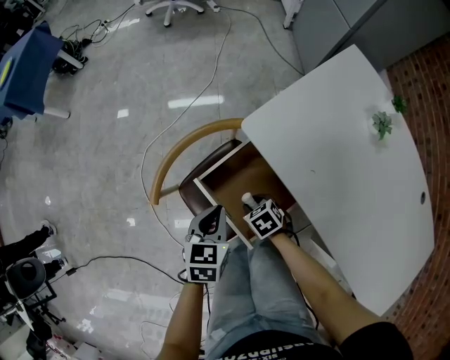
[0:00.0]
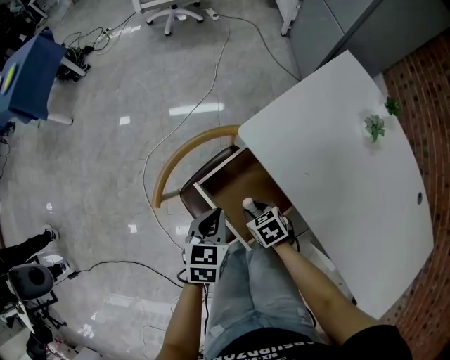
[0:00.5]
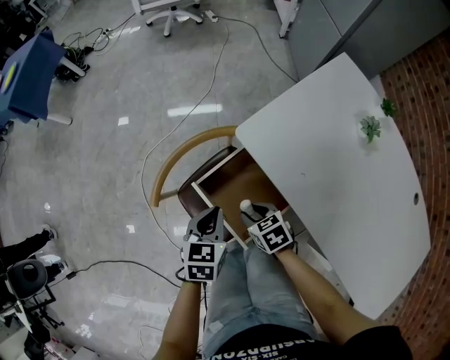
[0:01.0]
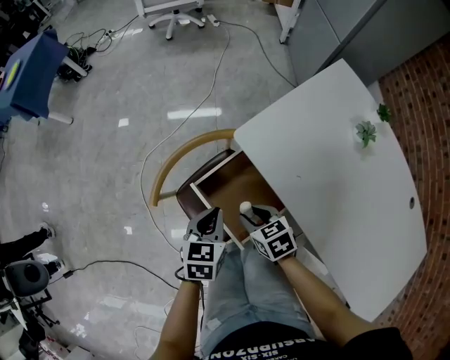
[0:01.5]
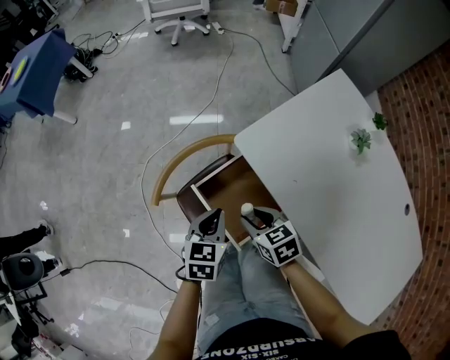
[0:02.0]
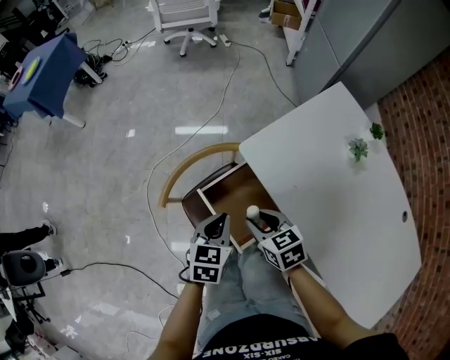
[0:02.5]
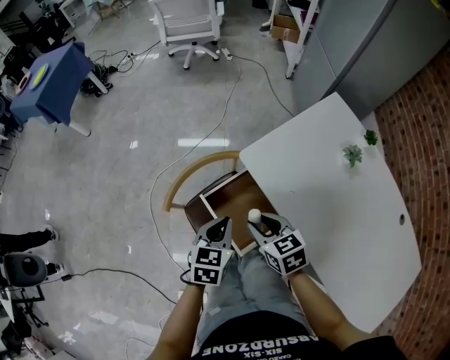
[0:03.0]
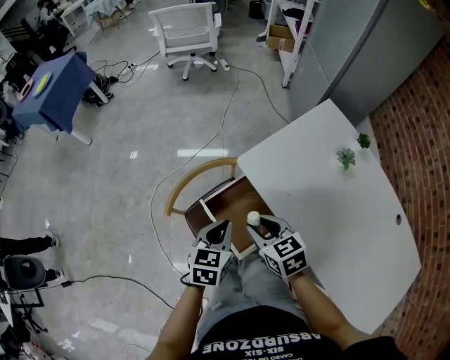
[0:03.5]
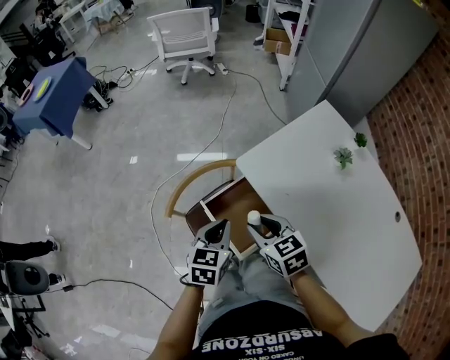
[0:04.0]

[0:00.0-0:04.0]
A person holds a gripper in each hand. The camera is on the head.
0:00.0 to 0:02.0: The left gripper is displaced upward by some 5 cm. The right gripper is displaced upward by some 20 cm, and swivels some 20 degrees.
0:02.0 to 0:04.0: Both grippers move upward, about 10 cm.

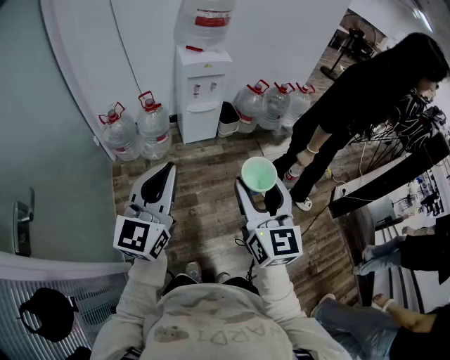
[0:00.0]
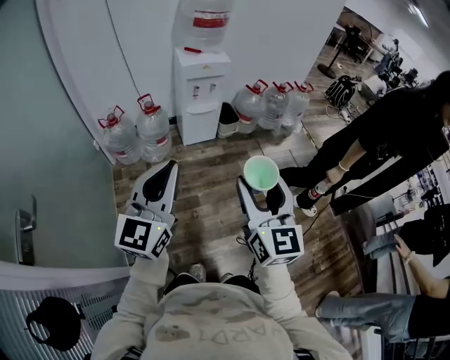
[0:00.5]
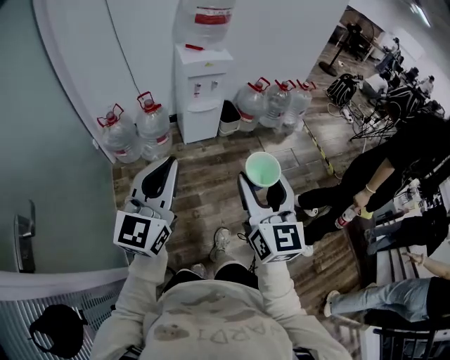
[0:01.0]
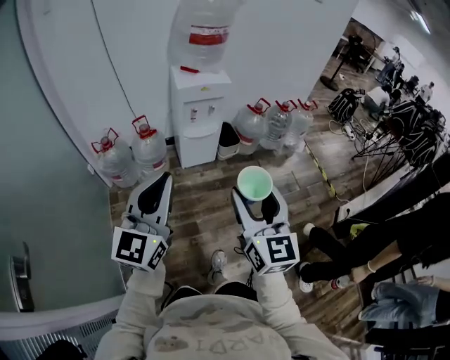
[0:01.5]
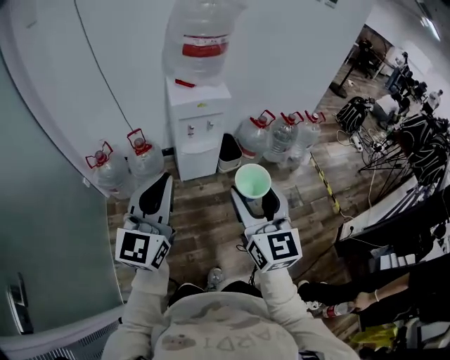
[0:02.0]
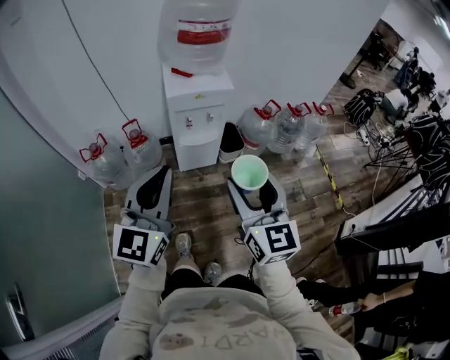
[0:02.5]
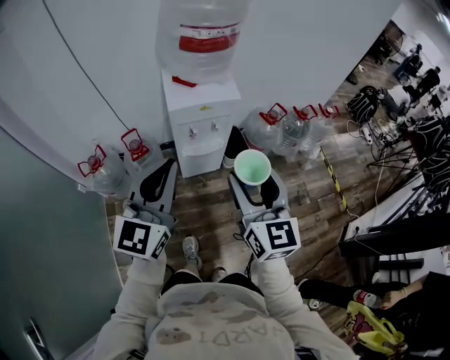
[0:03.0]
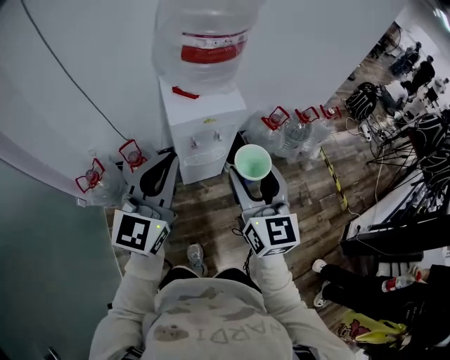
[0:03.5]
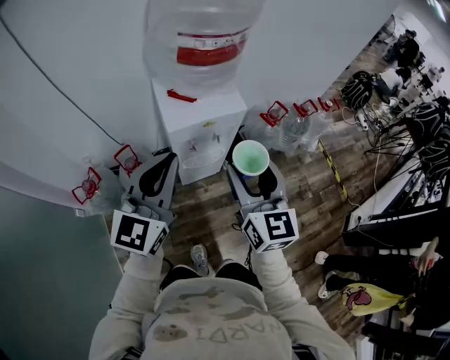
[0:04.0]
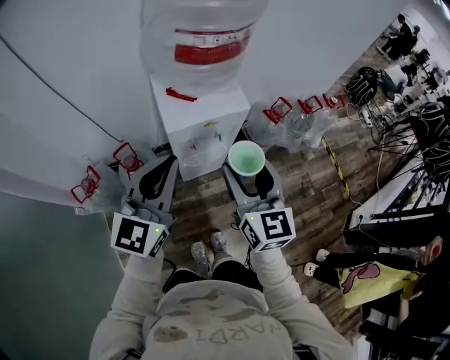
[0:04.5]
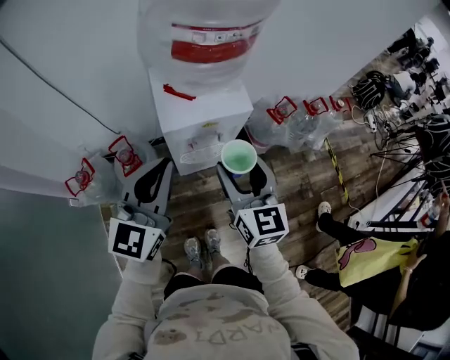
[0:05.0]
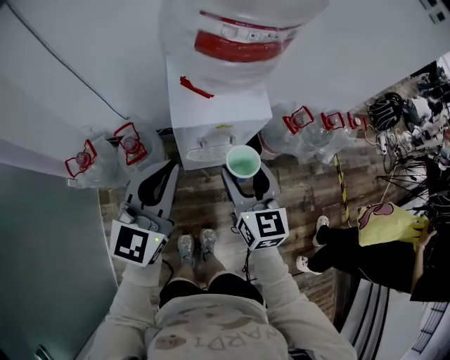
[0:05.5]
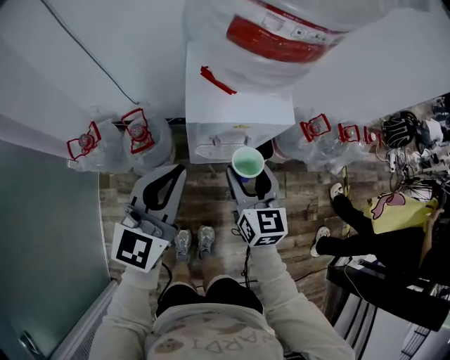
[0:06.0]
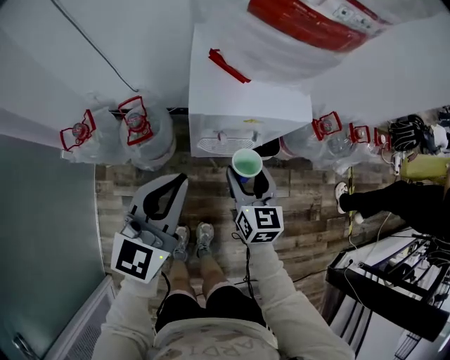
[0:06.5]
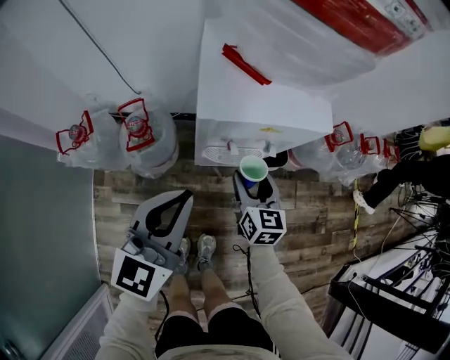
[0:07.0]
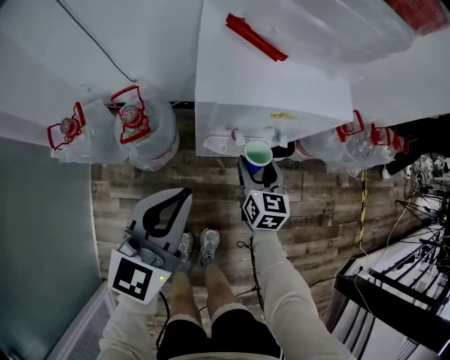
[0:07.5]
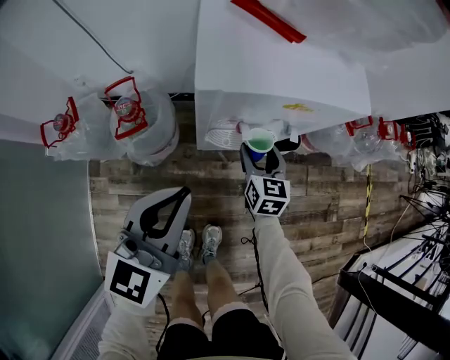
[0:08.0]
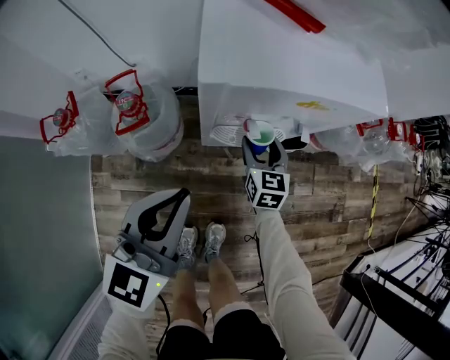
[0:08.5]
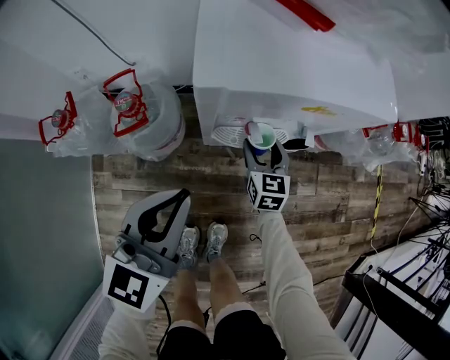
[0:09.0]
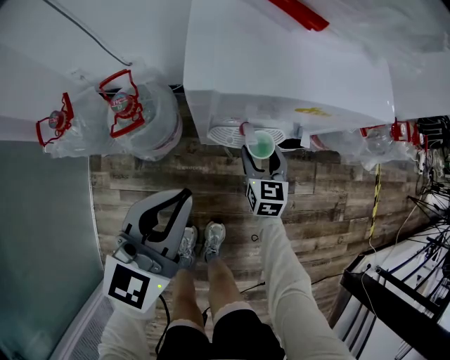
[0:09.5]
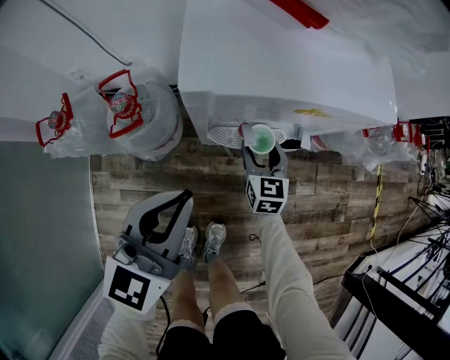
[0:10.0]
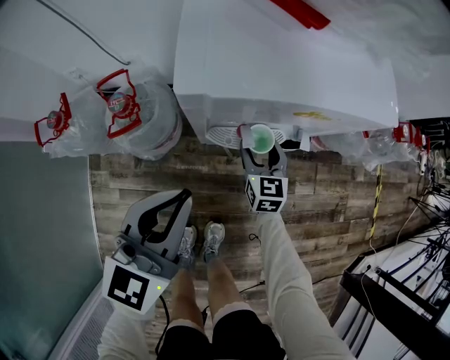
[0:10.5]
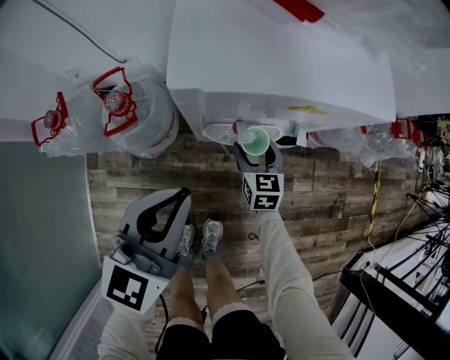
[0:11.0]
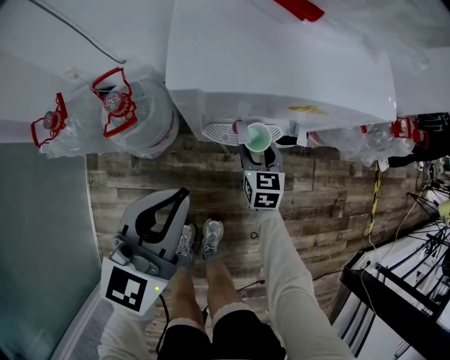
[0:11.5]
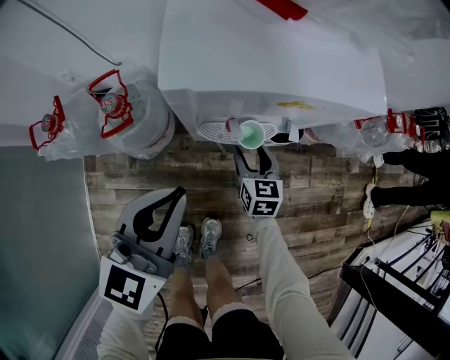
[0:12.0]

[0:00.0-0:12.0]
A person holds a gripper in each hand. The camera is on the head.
0:00.0 to 0:02.0: The grippers both shift forward by about 30 cm.
0:02.0 to 0:04.0: Both grippers move forward, about 35 cm.
0:04.0 to 0:06.0: The left gripper heads downward and forward, covering roughly 15 cm, while the right gripper moves downward and forward, about 25 cm, and turns by roughly 20 degrees.
0:06.0 to 0:08.0: The left gripper shifts approximately 20 cm downward. The right gripper is displaced downward by roughly 30 cm.
0:08.0 to 0:10.0: The right gripper goes about 5 cm downward.
0:10.0 to 0:12.0: The grippers move only a little.

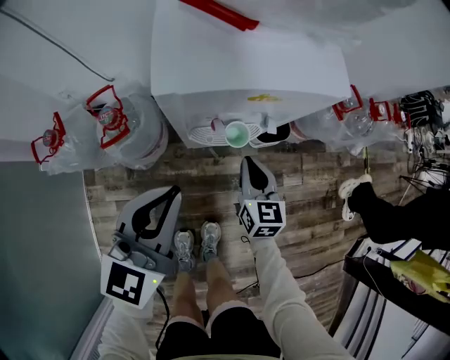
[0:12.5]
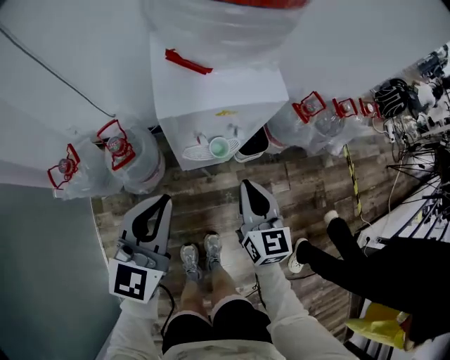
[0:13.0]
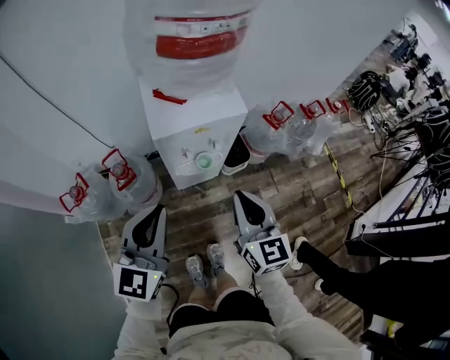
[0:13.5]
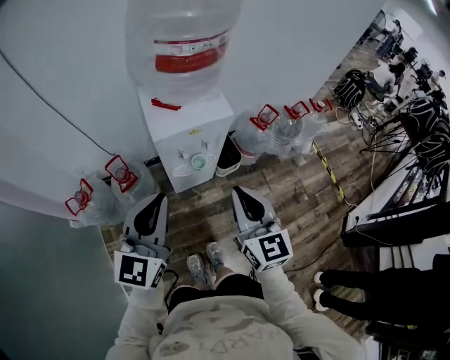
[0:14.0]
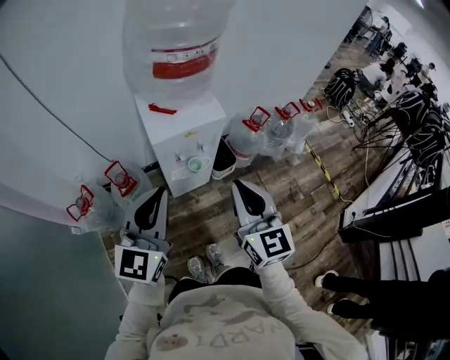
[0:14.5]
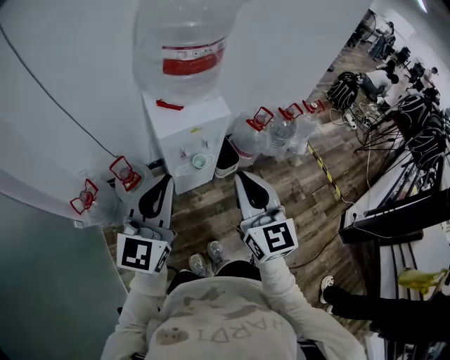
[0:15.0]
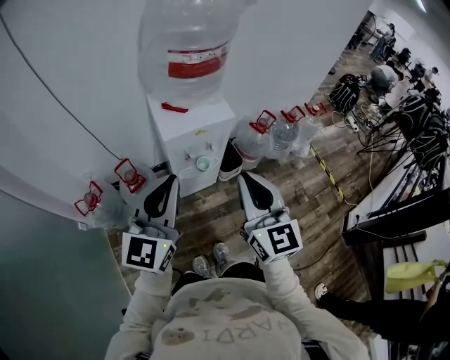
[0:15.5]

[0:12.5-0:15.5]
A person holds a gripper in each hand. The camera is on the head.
0:12.5 to 0:14.0: The right gripper shifts roughly 50 cm upward and backward, and swivels about 20 degrees; the left gripper shifts about 30 cm upward and backward.
0:14.0 to 0:15.5: The right gripper shifts some 10 cm upward, while the left gripper moves upward, about 5 cm.

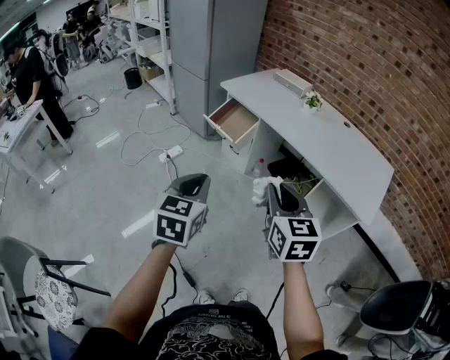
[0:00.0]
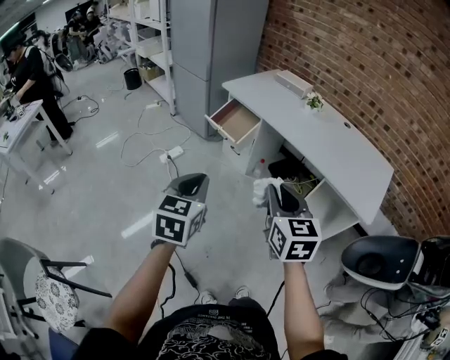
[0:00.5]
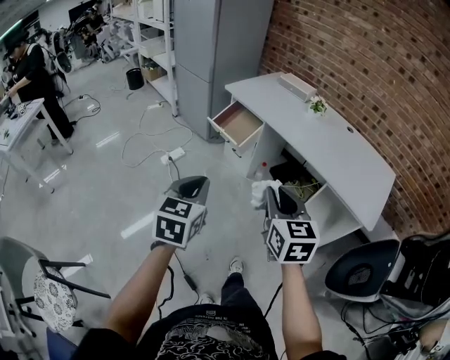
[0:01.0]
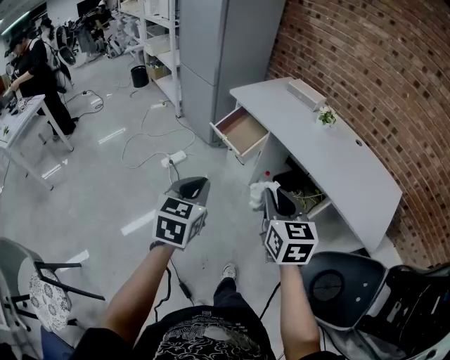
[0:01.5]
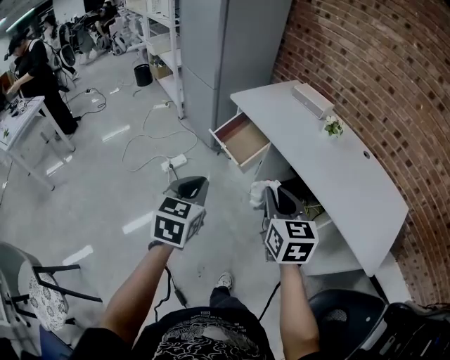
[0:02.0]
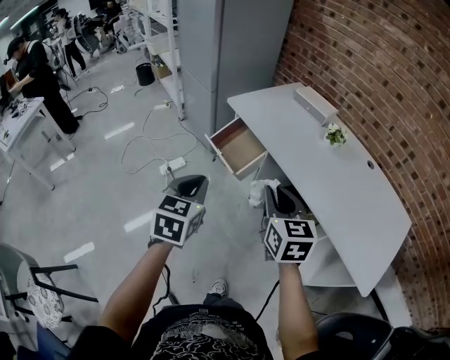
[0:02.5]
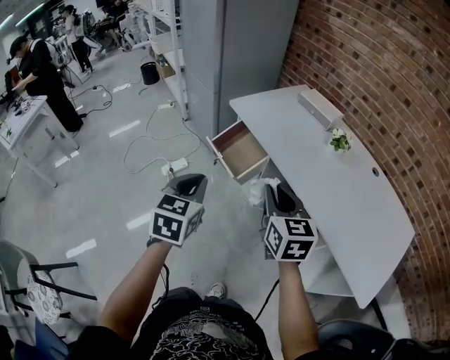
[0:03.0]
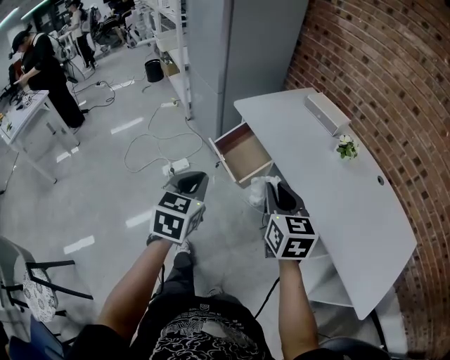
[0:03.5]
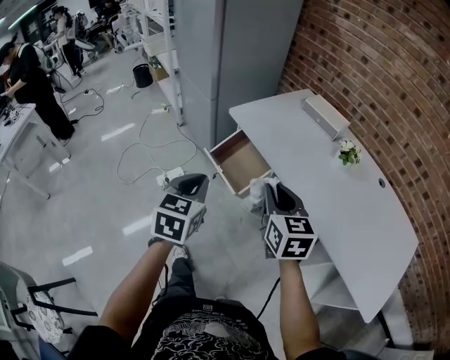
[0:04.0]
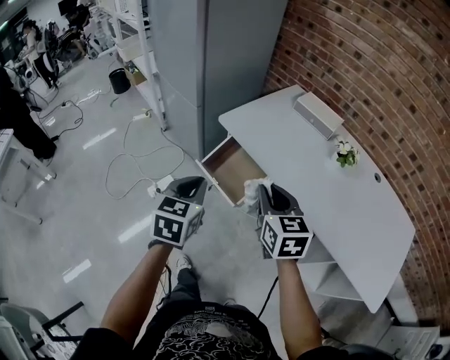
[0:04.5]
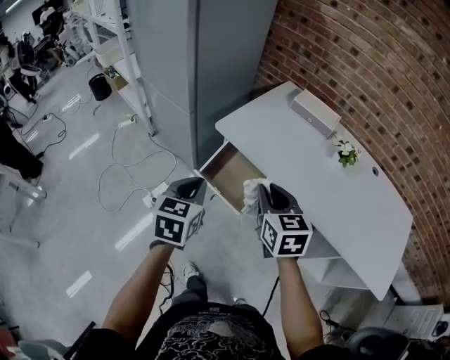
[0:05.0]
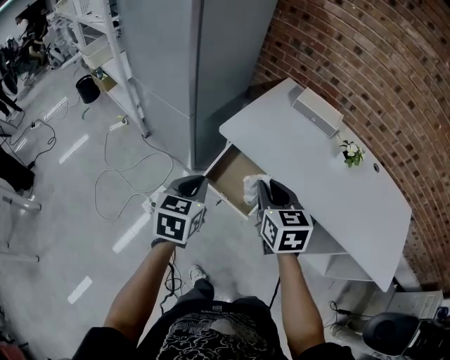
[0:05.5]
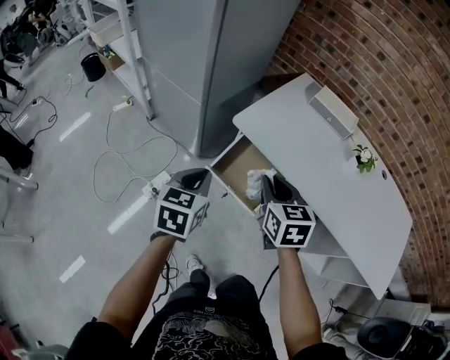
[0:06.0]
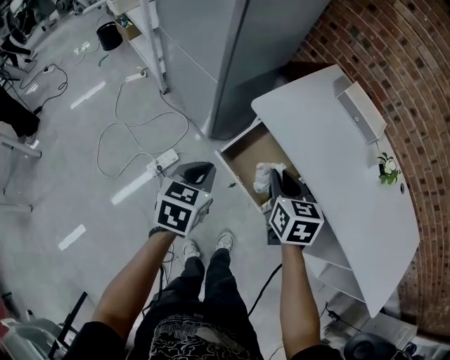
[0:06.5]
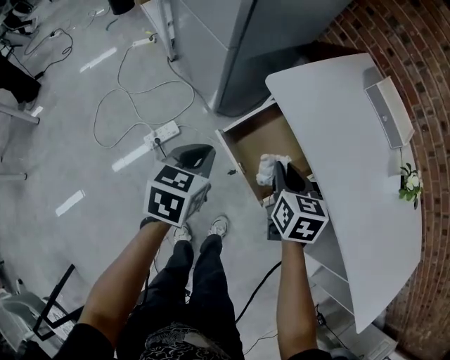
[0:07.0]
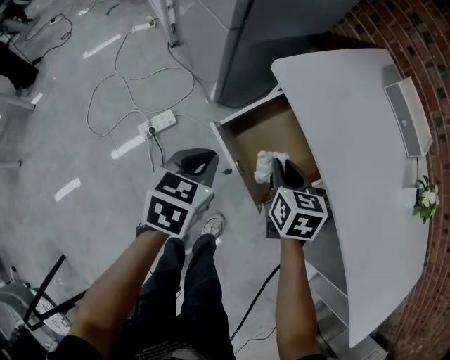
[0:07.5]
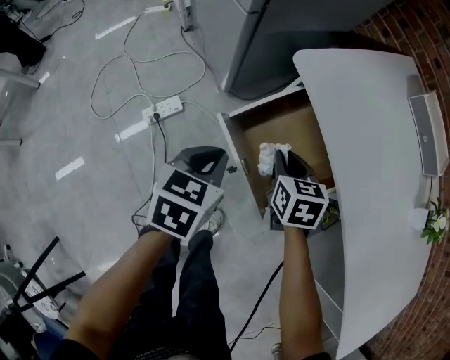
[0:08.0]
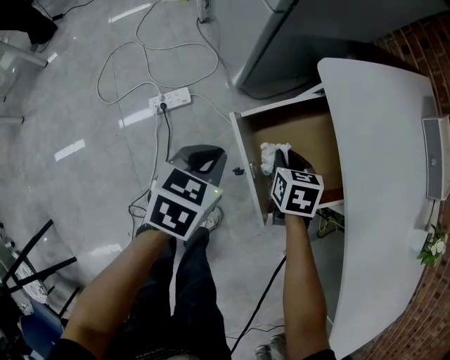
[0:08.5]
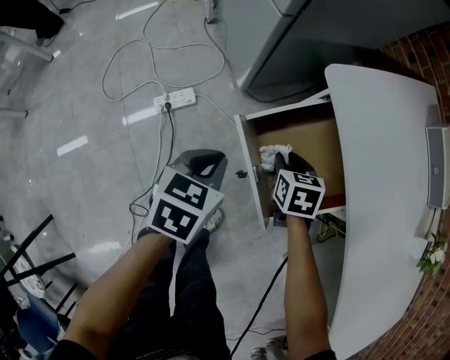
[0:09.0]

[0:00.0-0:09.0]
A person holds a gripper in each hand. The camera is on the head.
0:00.0 to 0:02.0: The grippers both shift forward by approximately 15 cm.
0:02.0 to 0:04.5: Both grippers travel together forward, roughly 25 cm.
0:04.5 to 0:07.0: The grippers both shift downward, forward and to the left by roughly 25 cm.
0:07.0 to 0:09.0: The left gripper travels downward by roughly 10 cm. The right gripper heads downward, covering roughly 20 cm, and rotates roughly 20 degrees.
